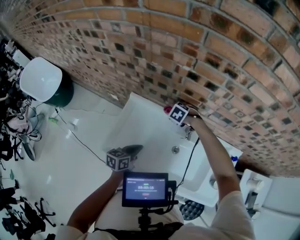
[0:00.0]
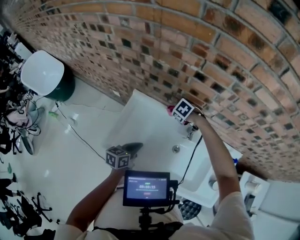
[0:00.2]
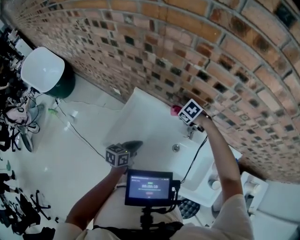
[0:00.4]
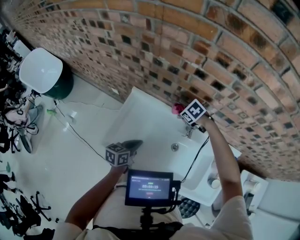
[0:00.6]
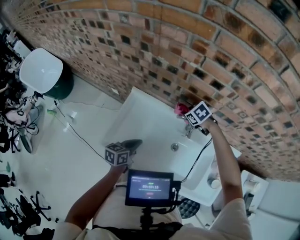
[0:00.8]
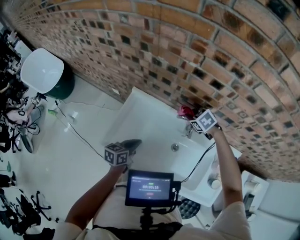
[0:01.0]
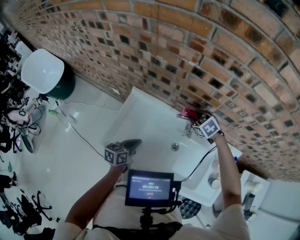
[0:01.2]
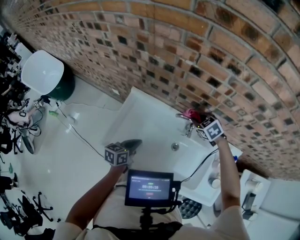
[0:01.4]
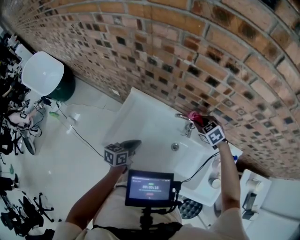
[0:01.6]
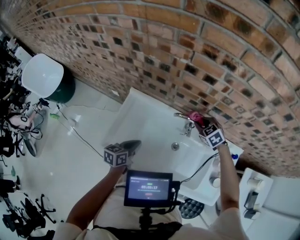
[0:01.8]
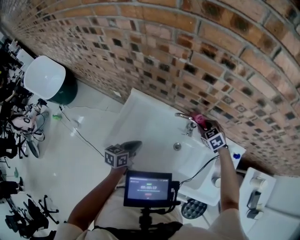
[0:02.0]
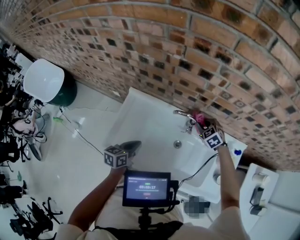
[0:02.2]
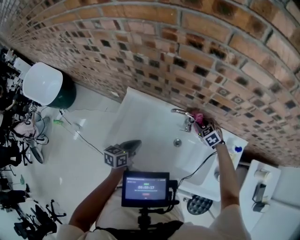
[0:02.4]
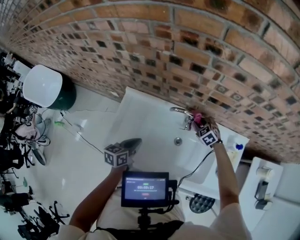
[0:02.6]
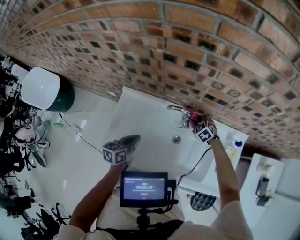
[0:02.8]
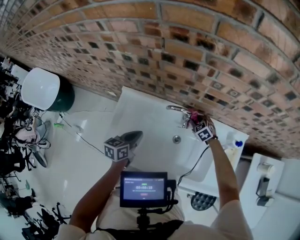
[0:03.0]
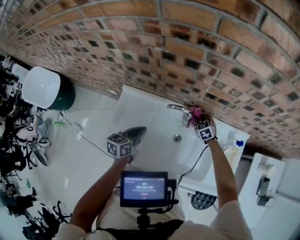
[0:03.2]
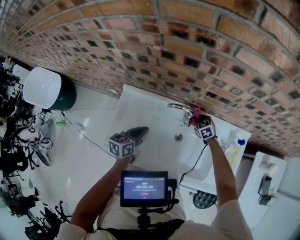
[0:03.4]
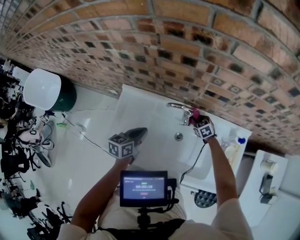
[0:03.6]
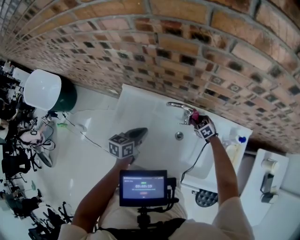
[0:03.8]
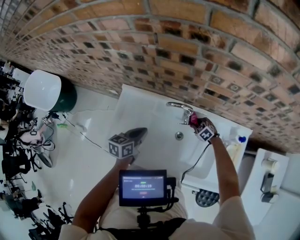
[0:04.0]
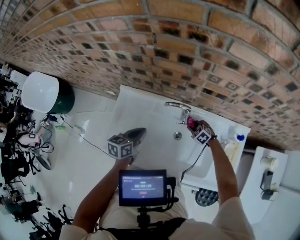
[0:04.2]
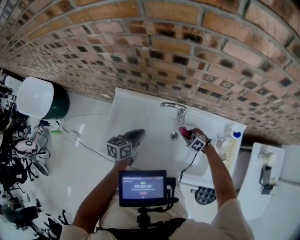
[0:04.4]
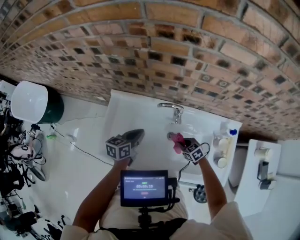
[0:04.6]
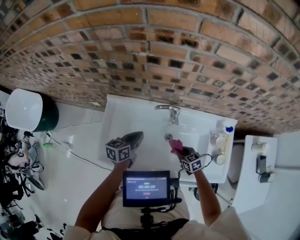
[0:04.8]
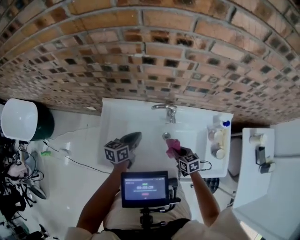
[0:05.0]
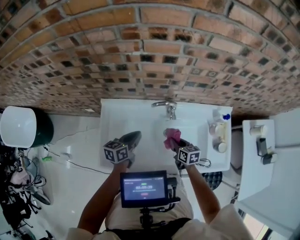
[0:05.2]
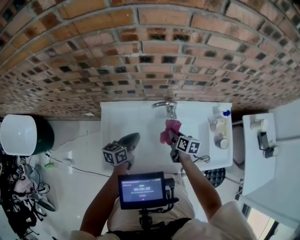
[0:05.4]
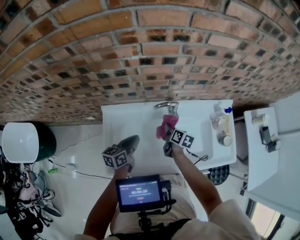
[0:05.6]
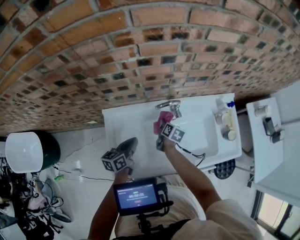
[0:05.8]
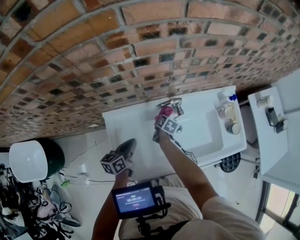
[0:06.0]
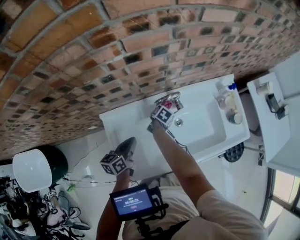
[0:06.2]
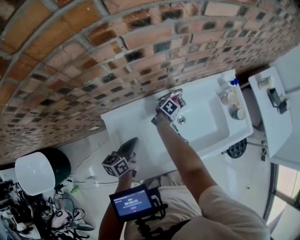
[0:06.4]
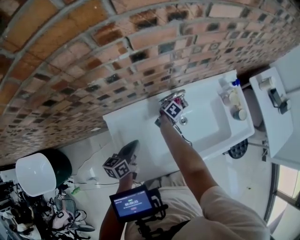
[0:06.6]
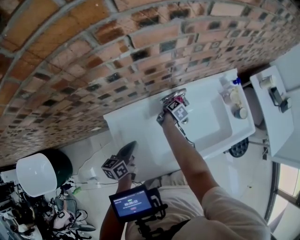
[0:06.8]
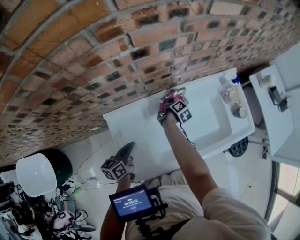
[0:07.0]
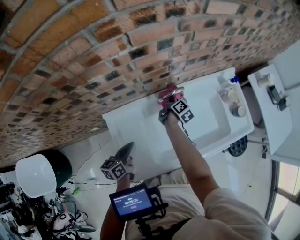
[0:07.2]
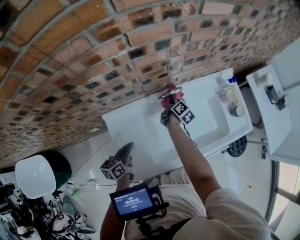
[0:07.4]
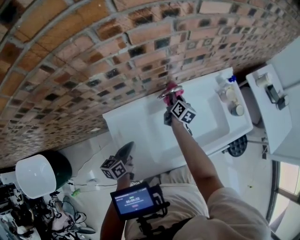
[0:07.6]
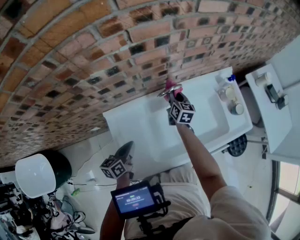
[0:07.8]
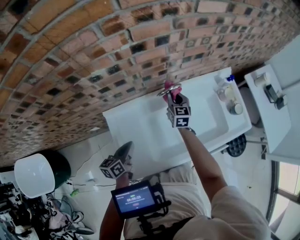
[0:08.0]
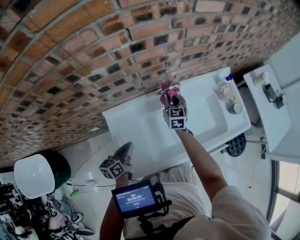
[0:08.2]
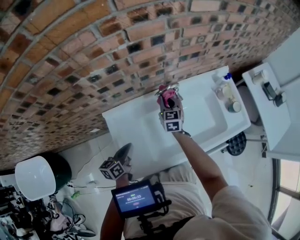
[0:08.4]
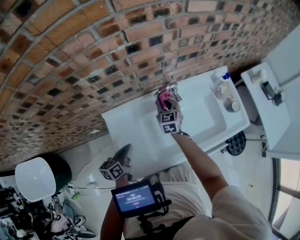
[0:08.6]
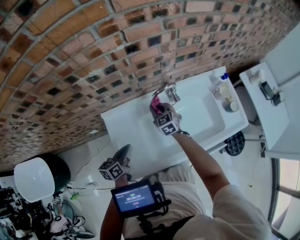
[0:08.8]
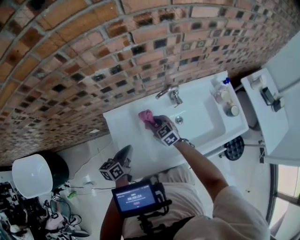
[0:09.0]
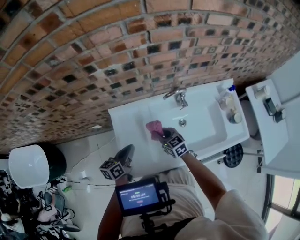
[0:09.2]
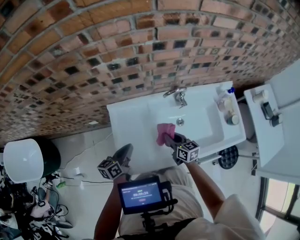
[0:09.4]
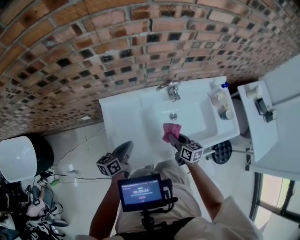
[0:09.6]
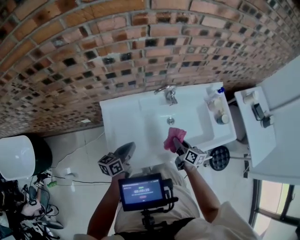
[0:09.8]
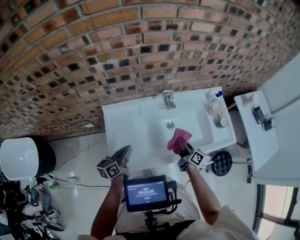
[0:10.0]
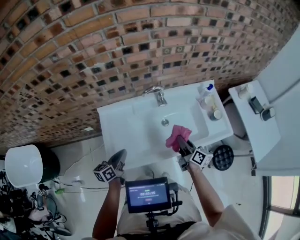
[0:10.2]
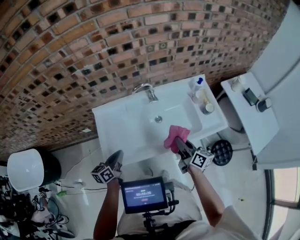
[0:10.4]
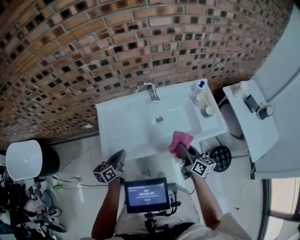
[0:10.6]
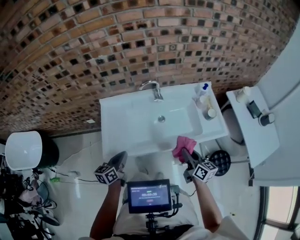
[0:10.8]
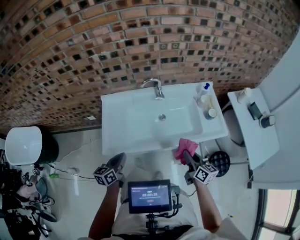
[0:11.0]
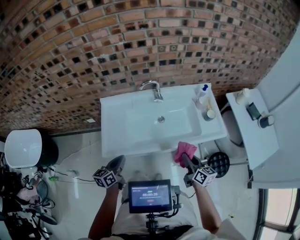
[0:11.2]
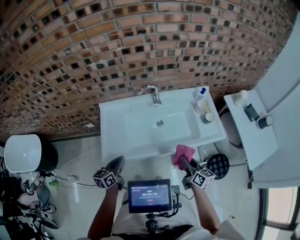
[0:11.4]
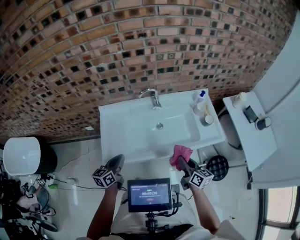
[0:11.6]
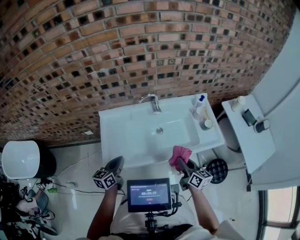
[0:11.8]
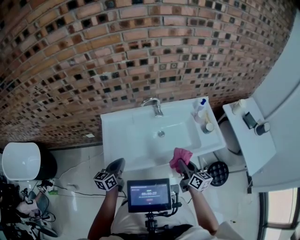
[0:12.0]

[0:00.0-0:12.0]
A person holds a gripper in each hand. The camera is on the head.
0:00.0 to 0:01.6: The right gripper changes place by approximately 15 cm, and turns by about 20 degrees.
0:01.6 to 0:03.0: The right gripper goes roughly 15 cm downward, while the left gripper moves approximately 5 cm.
0:03.0 to 0:04.4: The right gripper travels backward and downward by roughly 15 cm.
0:04.4 to 0:06.0: The right gripper ends up about 20 cm from where it was, and rolls clockwise, seen from behind, by about 100 degrees. The left gripper ends up some 10 cm from where it was.
0:06.0 to 0:07.6: The right gripper goes about 10 cm upward and forward, and swivels approximately 30 degrees; the left gripper moves some 5 cm.
0:07.6 to 0:09.0: The right gripper moves backward and to the left, roughly 20 cm, and rolls counterclockwise, seen from behind, by some 60 degrees.
0:09.0 to 0:10.4: The left gripper is displaced backward, to the right and upward by approximately 15 cm, while the right gripper moves to the right, backward and upward, about 40 cm, and rolls clockwise, seen from behind, by approximately 50 degrees.
0:10.4 to 0:12.0: The right gripper is displaced backward by roughly 5 cm; the left gripper moves approximately 10 cm backward and comes back.

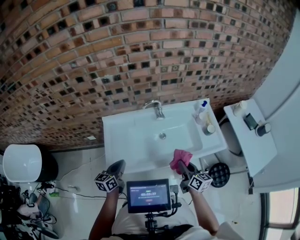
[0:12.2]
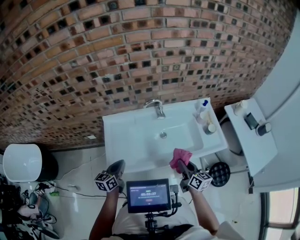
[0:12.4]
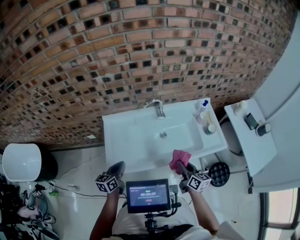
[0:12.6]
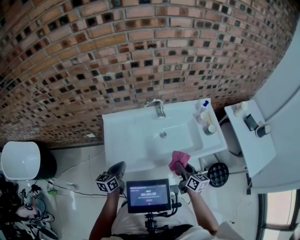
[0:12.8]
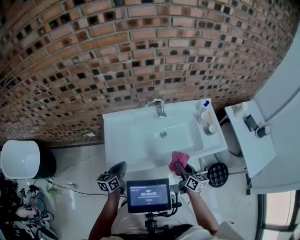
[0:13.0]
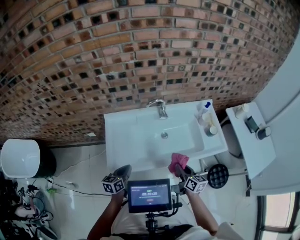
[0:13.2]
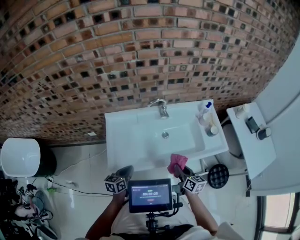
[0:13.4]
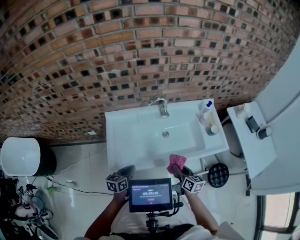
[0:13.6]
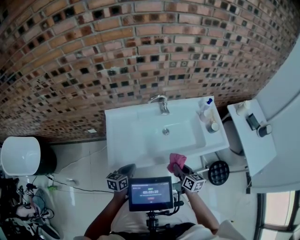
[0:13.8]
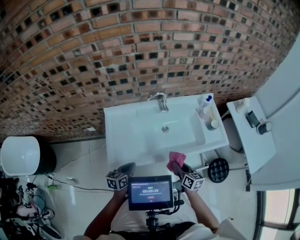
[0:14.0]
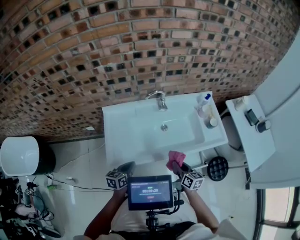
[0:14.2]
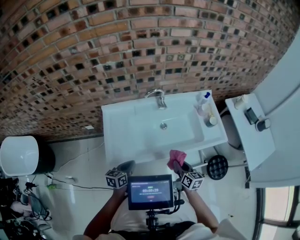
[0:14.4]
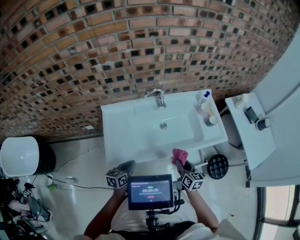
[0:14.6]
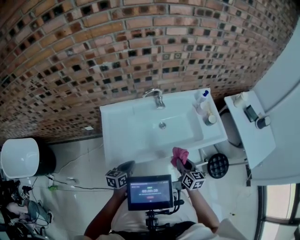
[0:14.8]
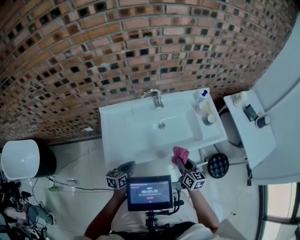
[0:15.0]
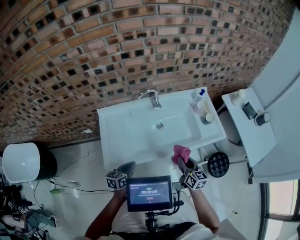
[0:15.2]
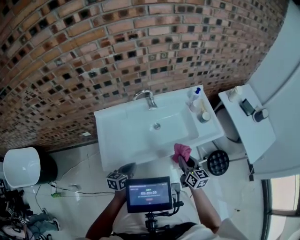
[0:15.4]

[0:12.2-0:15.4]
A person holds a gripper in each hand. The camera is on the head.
0:12.2 to 0:13.8: The grippers both shift downward by roughly 5 cm.
0:13.8 to 0:15.4: The two grippers go about 5 cm to the right.

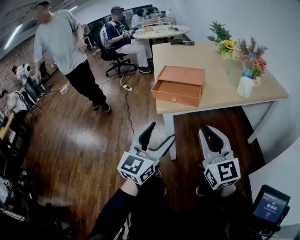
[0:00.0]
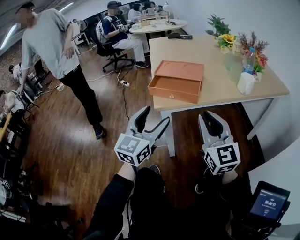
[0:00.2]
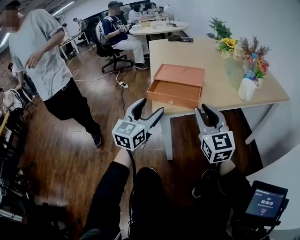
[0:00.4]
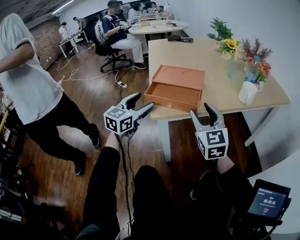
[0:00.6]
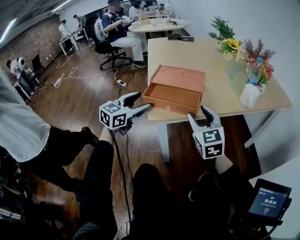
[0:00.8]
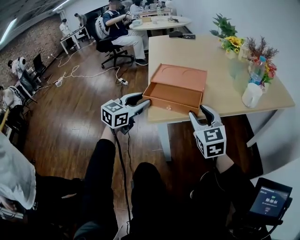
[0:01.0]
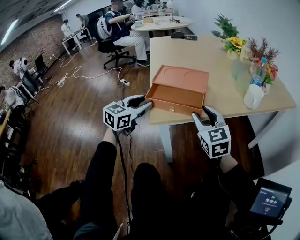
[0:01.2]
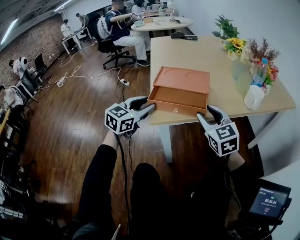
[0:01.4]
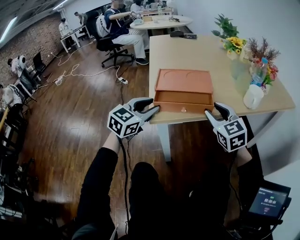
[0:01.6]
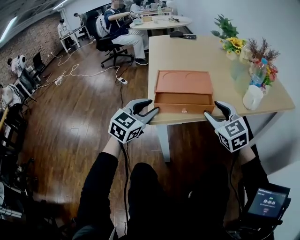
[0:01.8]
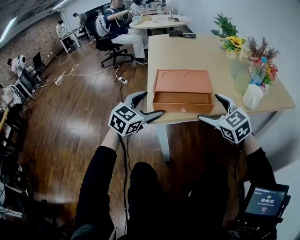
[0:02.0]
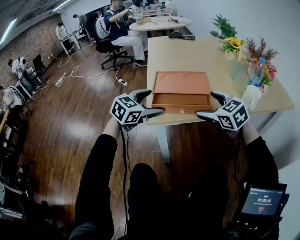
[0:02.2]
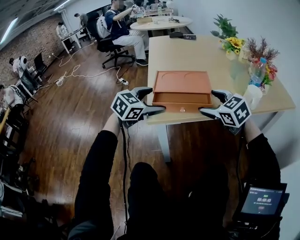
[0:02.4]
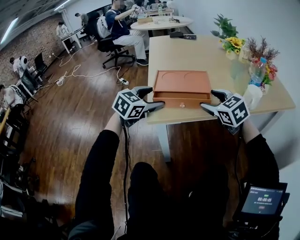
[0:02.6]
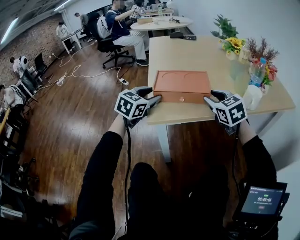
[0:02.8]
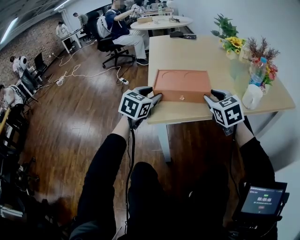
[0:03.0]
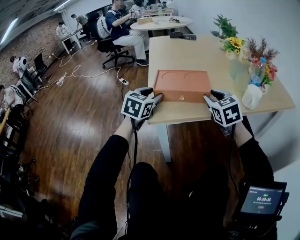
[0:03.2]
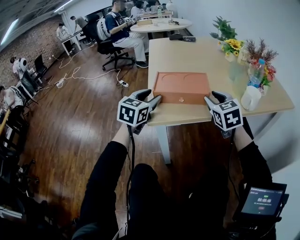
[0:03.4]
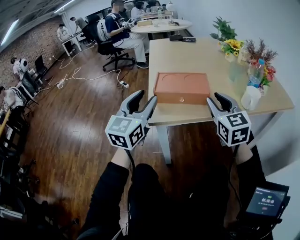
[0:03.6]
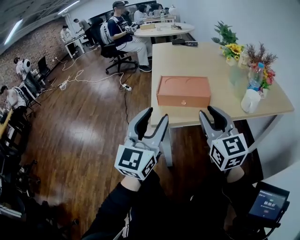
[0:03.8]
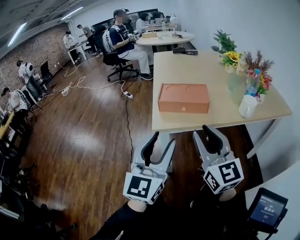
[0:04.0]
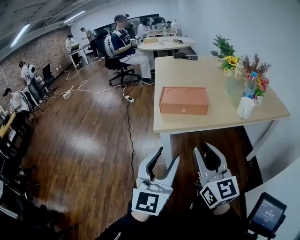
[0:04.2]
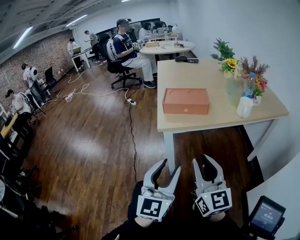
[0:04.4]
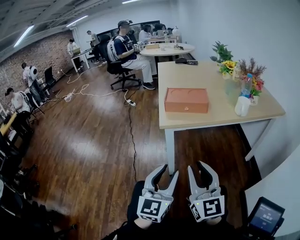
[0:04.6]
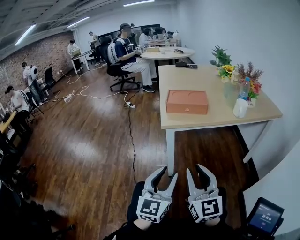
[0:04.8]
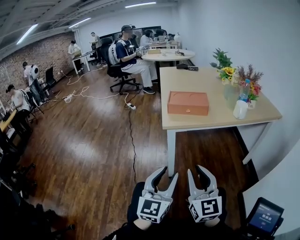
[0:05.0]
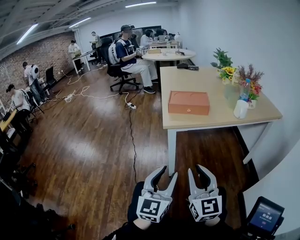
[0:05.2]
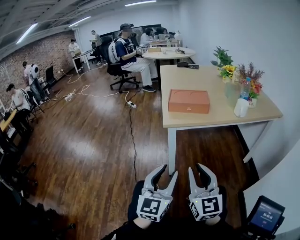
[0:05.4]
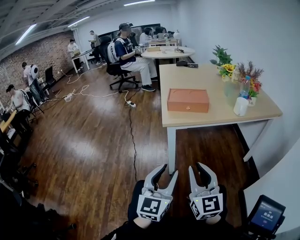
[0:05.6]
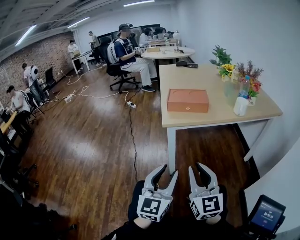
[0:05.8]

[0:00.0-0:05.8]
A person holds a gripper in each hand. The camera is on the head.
0:00.0 to 0:01.4: The grippers both shift forward by about 20 cm. The left gripper turns by approximately 20 degrees, and closes its fingers; the right gripper changes its angle by approximately 20 degrees.
0:01.4 to 0:02.8: The right gripper shifts about 5 cm forward, and opens, then closes again, while the left gripper changes place by approximately 5 cm, and opens, then closes again.
0:02.8 to 0:04.4: Both grippers move backward, approximately 35 cm. The right gripper tips its fingers upward by approximately 40 degrees; the left gripper angles its fingers upward, by some 30 degrees.
0:04.4 to 0:05.8: The two grippers go approximately 5 cm backward.

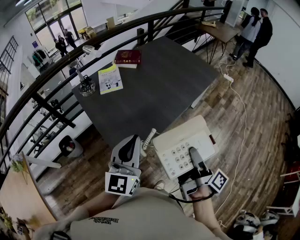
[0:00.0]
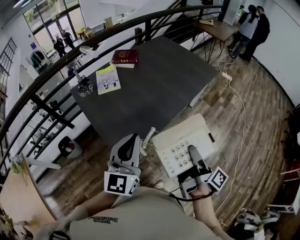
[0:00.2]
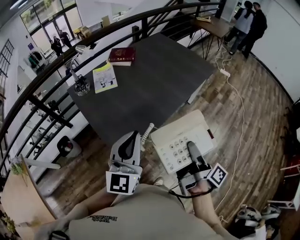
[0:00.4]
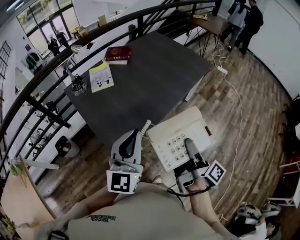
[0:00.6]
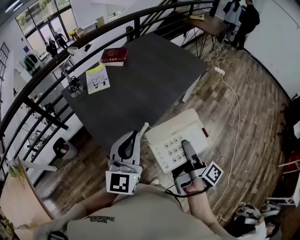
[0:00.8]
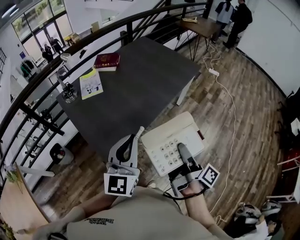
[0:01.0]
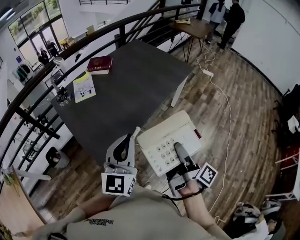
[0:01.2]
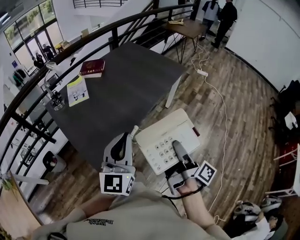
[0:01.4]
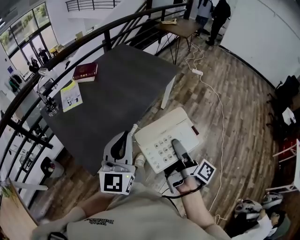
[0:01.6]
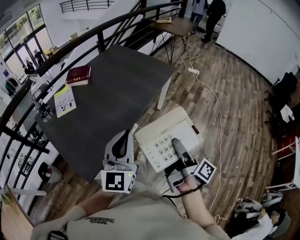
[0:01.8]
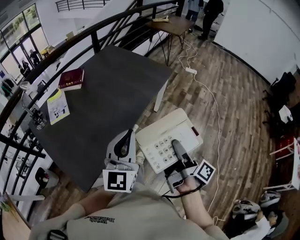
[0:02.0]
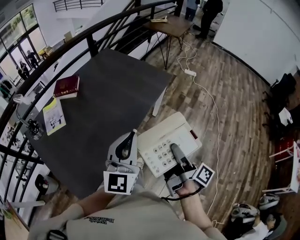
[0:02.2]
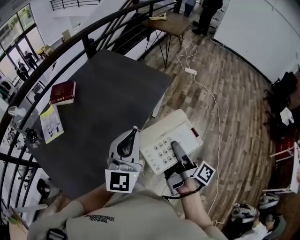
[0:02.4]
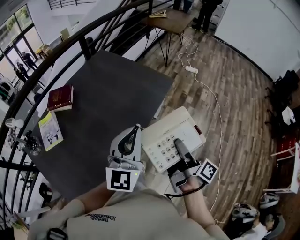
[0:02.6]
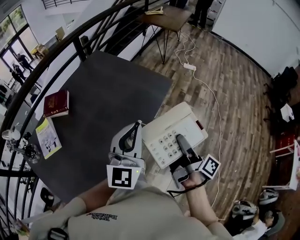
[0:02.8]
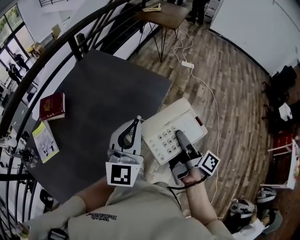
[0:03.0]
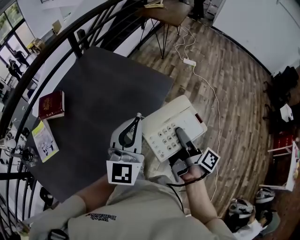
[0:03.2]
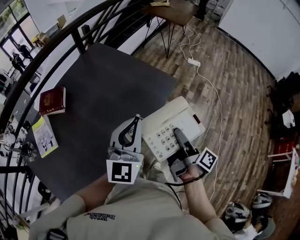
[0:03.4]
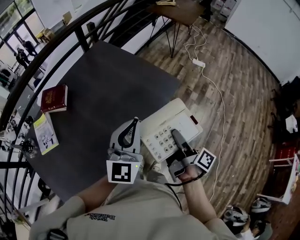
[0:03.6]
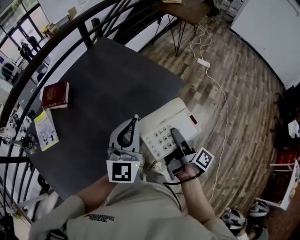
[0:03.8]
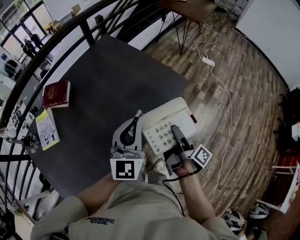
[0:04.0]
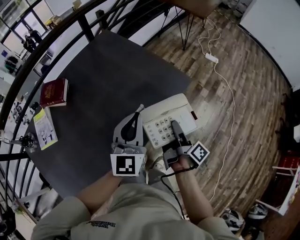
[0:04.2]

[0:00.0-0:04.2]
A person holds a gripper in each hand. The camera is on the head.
0:00.0 to 0:01.4: The two grippers go some 10 cm to the right.
0:01.4 to 0:02.8: The grippers both shift forward by about 30 cm.
0:02.8 to 0:04.2: The two grippers go roughly 15 cm downward and forward.
